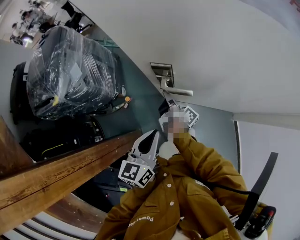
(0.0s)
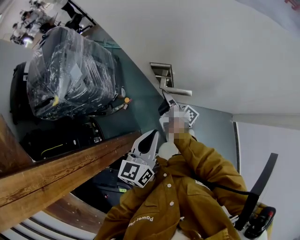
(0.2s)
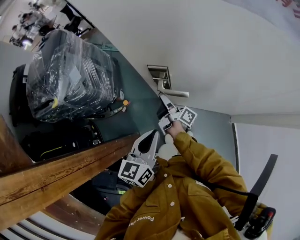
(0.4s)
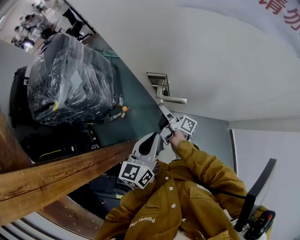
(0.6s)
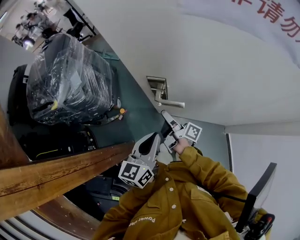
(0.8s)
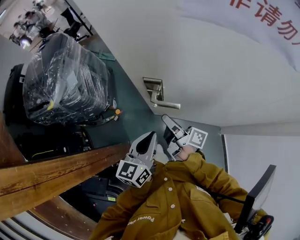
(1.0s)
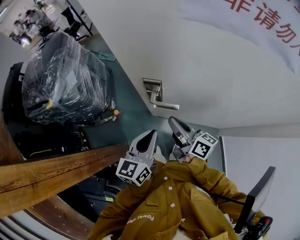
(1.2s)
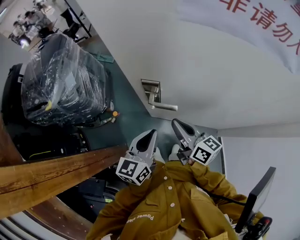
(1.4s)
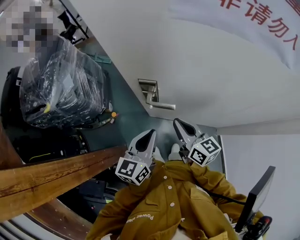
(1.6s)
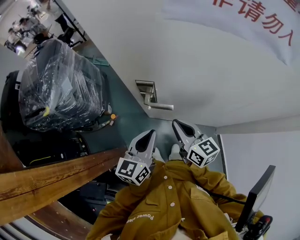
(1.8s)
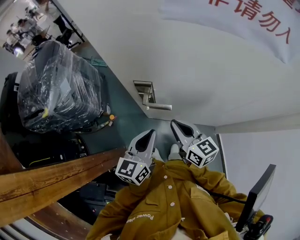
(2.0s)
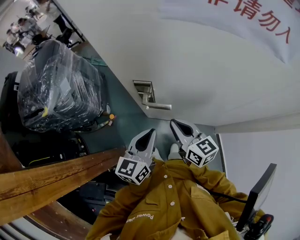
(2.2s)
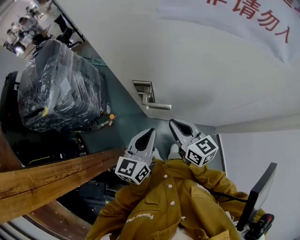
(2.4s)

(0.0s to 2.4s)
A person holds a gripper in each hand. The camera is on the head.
0.0s - 1.2s: The left gripper shifts by about 5 cm.

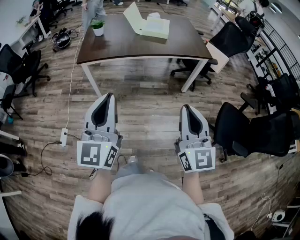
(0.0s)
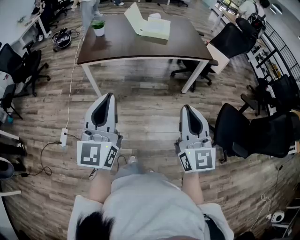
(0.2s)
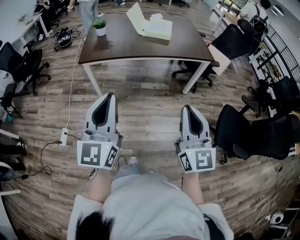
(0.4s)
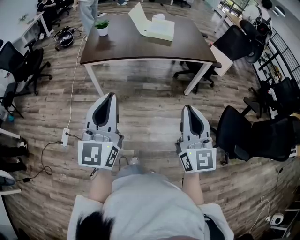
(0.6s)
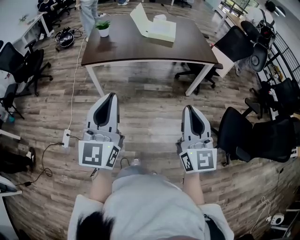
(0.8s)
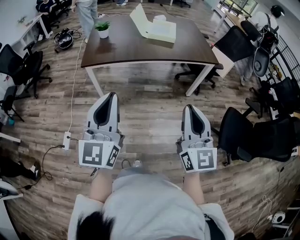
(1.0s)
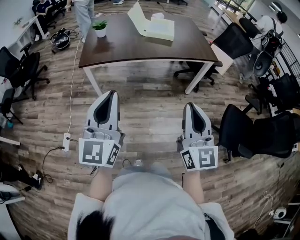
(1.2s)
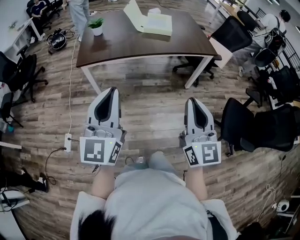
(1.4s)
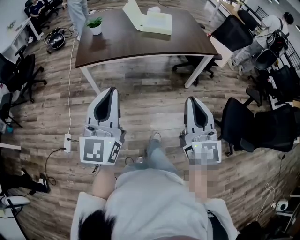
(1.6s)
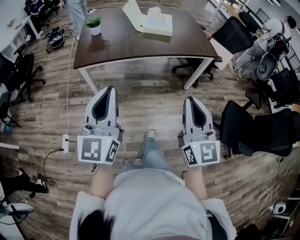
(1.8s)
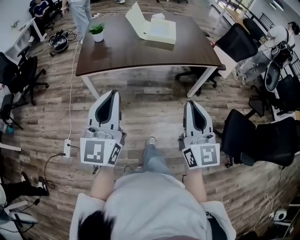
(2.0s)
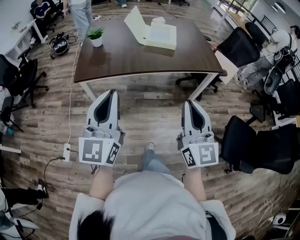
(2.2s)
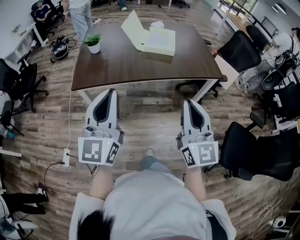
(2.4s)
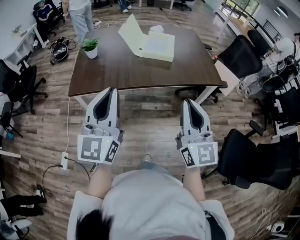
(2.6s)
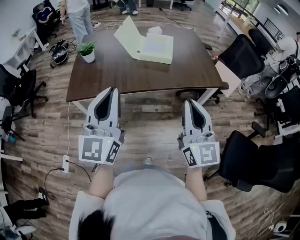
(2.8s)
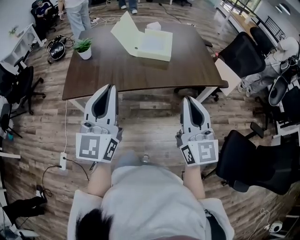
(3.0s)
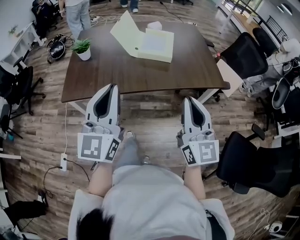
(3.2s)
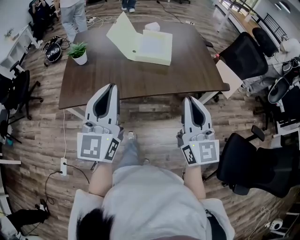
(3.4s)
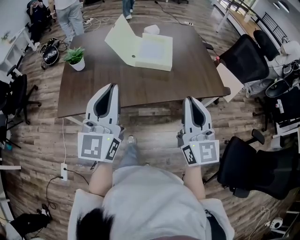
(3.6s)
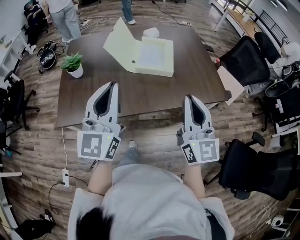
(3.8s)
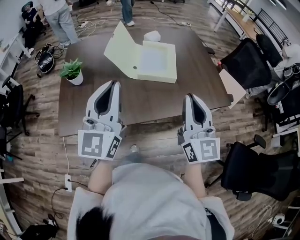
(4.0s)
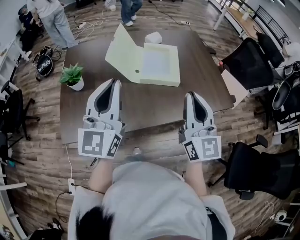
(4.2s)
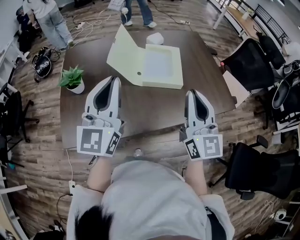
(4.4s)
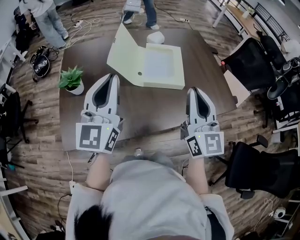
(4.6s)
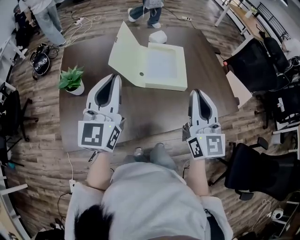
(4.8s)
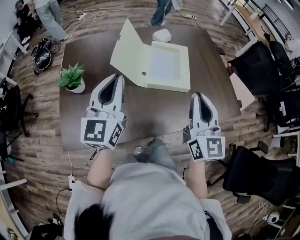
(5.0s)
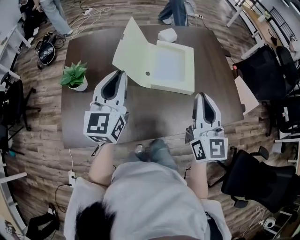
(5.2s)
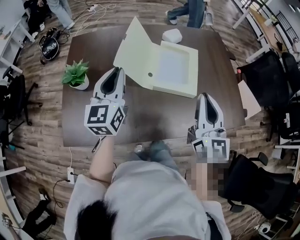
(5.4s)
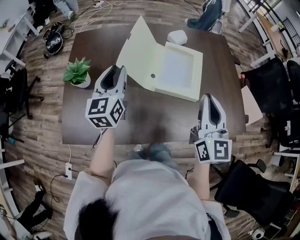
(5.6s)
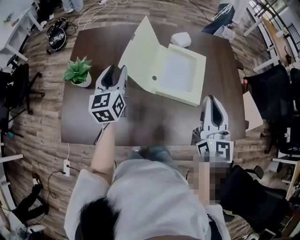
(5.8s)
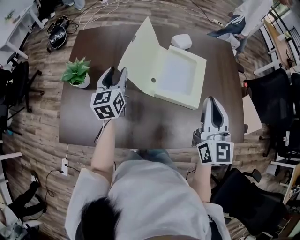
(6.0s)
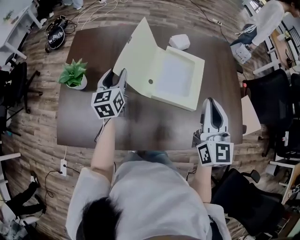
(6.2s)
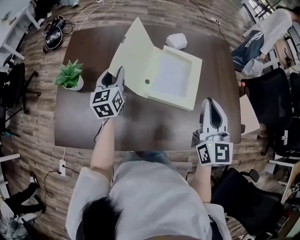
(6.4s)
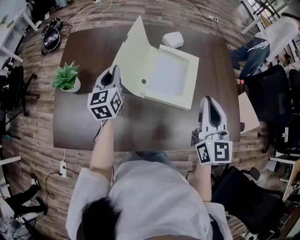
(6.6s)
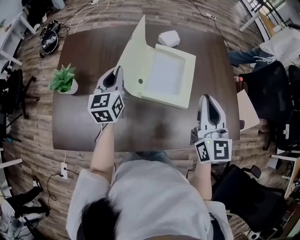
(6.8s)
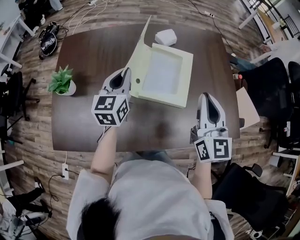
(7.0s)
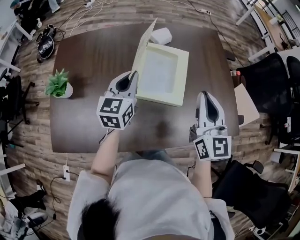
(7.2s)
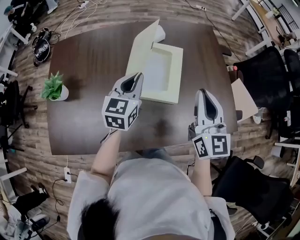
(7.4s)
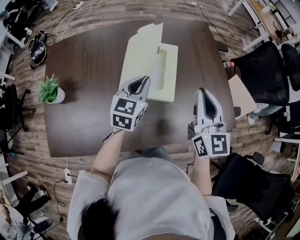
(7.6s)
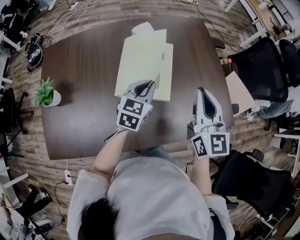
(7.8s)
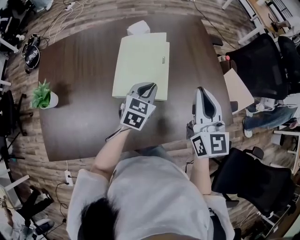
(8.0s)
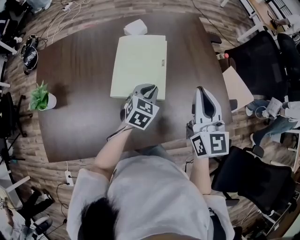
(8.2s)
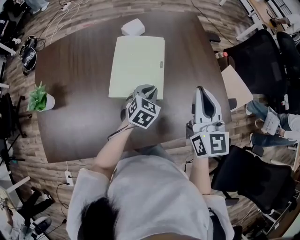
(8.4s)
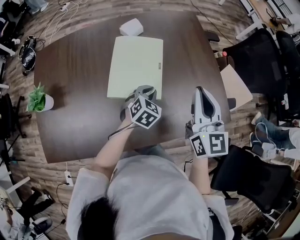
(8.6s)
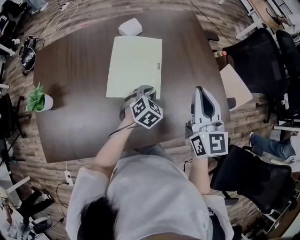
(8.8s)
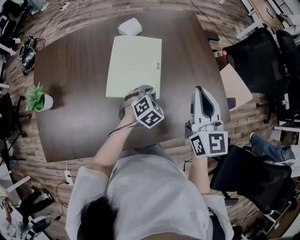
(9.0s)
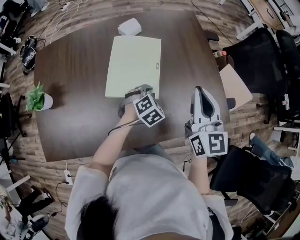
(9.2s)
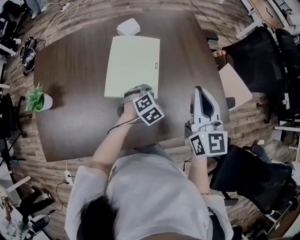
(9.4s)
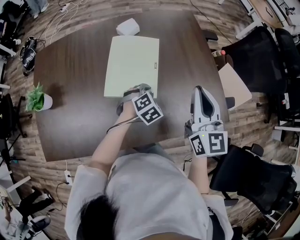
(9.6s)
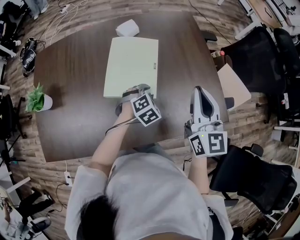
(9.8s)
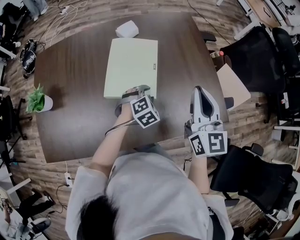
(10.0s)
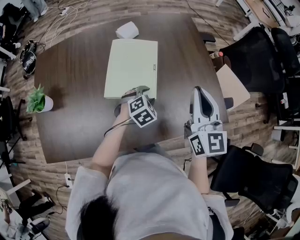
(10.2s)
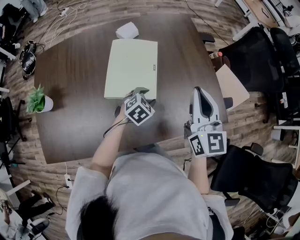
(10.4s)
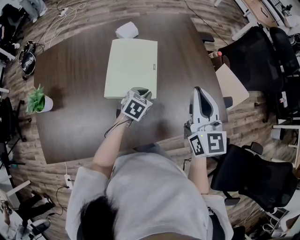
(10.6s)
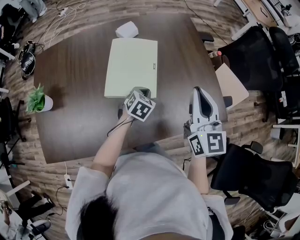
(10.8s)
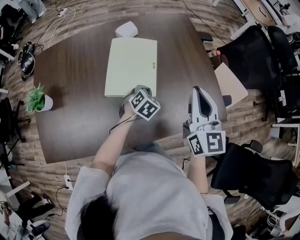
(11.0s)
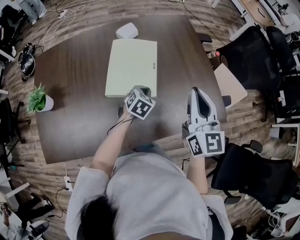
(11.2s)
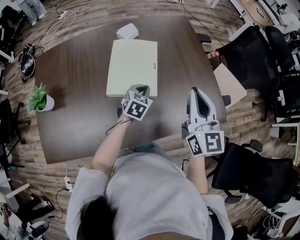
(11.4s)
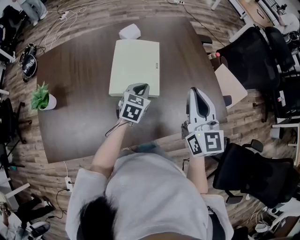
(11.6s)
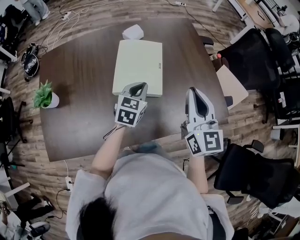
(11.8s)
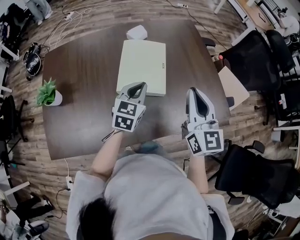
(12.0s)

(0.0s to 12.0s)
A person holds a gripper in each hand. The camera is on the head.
0.0s - 1.6s: Both grippers move forward and to the left, approximately 10 cm.
1.6s - 3.0s: The two grippers go roughly 30 cm forward.
3.0s - 4.4s: The grippers both shift forward by approximately 30 cm.
4.4s - 6.0s: The left gripper shifts approximately 30 cm forward and downward, turns by about 40 degrees, and opens. Meanwhile the right gripper heads forward, covering about 20 cm.
6.0s - 7.6s: The right gripper heads to the right, covering approximately 10 cm. Meanwhile the left gripper moves to the right, some 25 cm, turns by some 30 degrees, and closes up.
7.6s - 9.0s: The right gripper travels to the right by roughly 5 cm; the left gripper heads downward and to the right, covering approximately 20 cm, and tips its fingers downward by approximately 30 degrees.
9.0s - 10.4s: The left gripper opens up.
10.4s - 12.0s: The right gripper heads backward and to the left, covering about 10 cm. The left gripper travels upward and to the left by roughly 15 cm, rotates approximately 40 degrees, and closes.

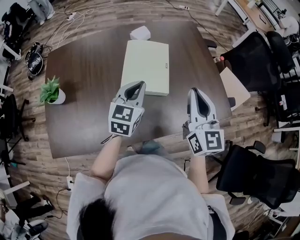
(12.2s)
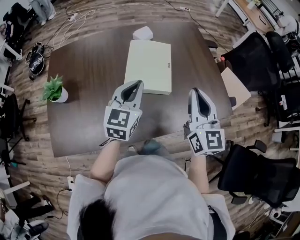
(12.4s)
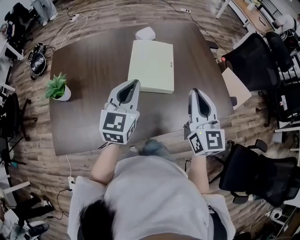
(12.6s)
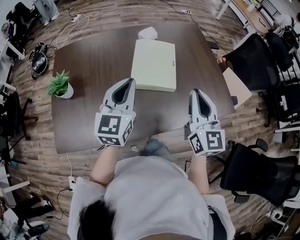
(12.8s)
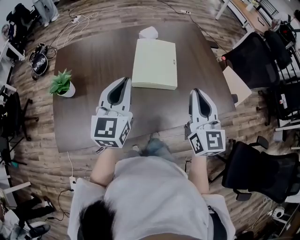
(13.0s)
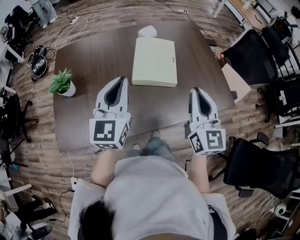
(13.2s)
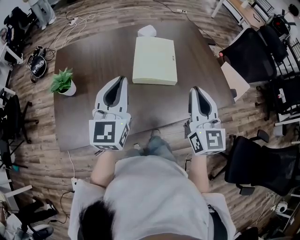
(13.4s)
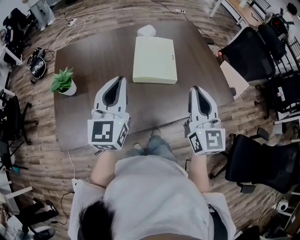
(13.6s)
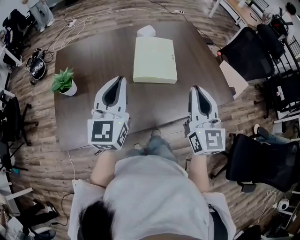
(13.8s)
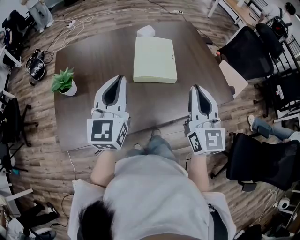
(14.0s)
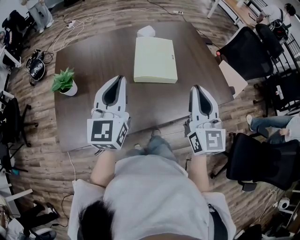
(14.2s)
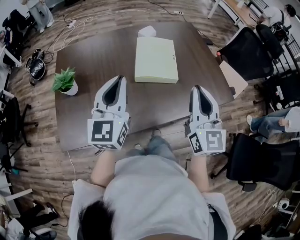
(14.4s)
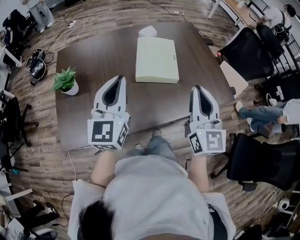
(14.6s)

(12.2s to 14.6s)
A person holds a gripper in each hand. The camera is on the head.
12.2s - 13.4s: The right gripper moves backward and to the left, about 10 cm, while the left gripper shifts approximately 20 cm backward, upward and to the left, and changes its angle by some 20 degrees.
13.4s - 14.6s: There are only small adjustments of the grippers.

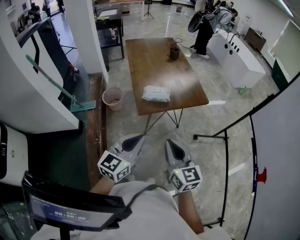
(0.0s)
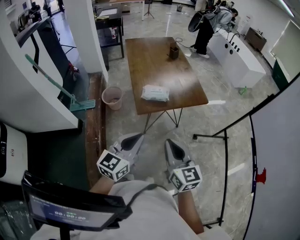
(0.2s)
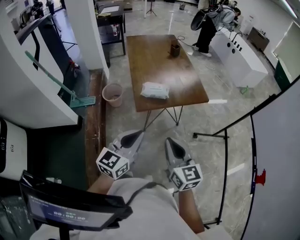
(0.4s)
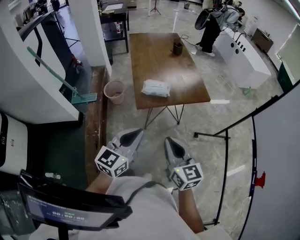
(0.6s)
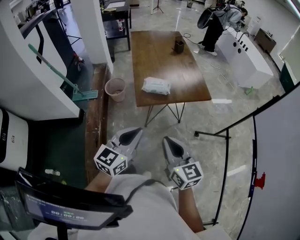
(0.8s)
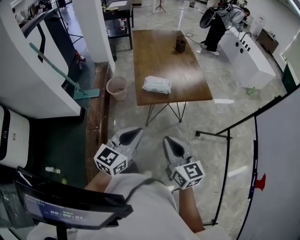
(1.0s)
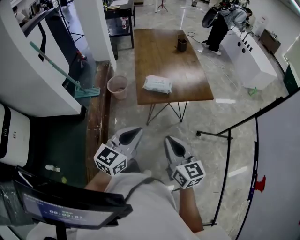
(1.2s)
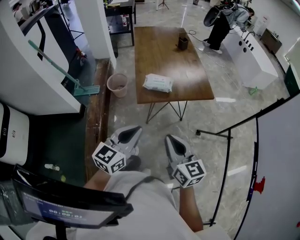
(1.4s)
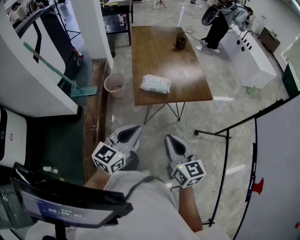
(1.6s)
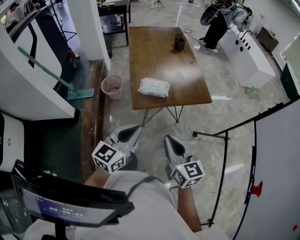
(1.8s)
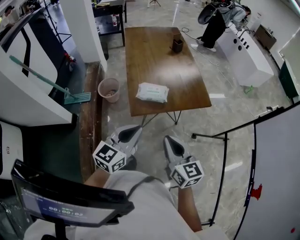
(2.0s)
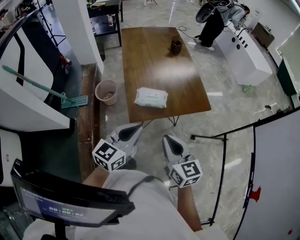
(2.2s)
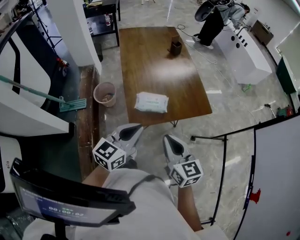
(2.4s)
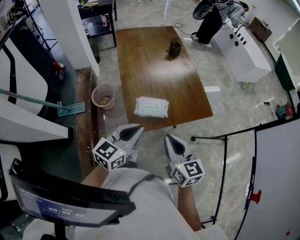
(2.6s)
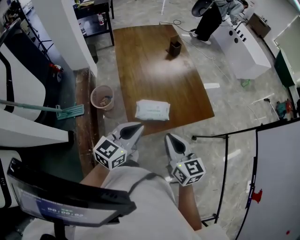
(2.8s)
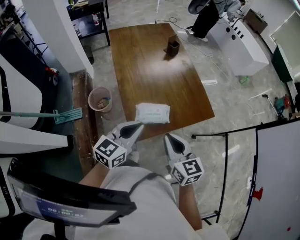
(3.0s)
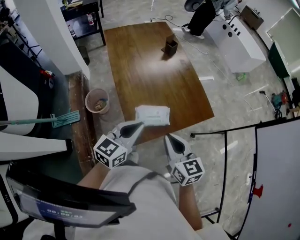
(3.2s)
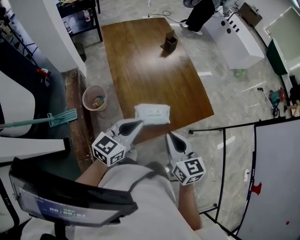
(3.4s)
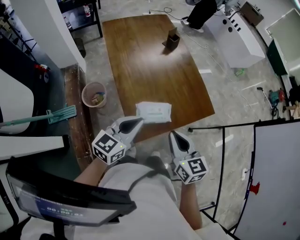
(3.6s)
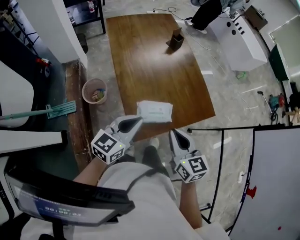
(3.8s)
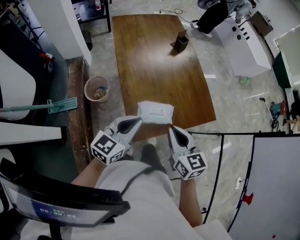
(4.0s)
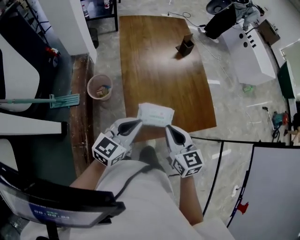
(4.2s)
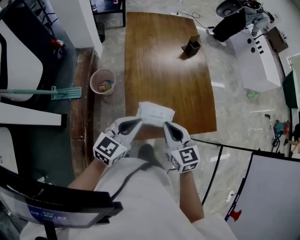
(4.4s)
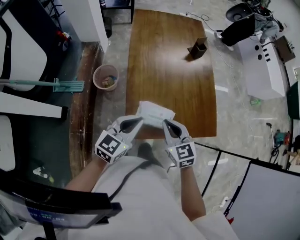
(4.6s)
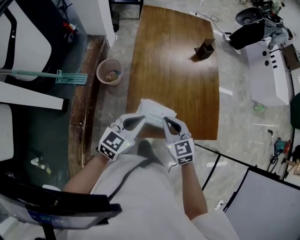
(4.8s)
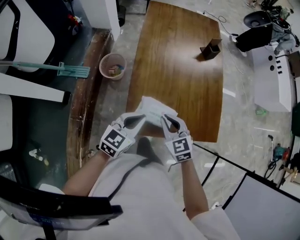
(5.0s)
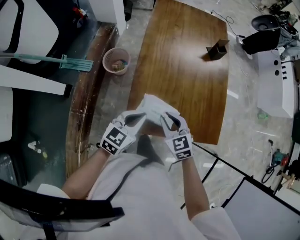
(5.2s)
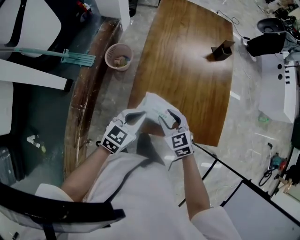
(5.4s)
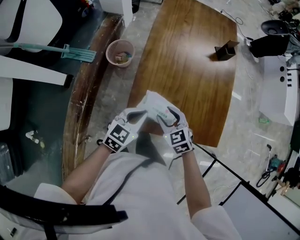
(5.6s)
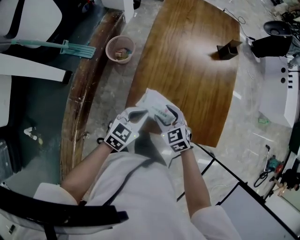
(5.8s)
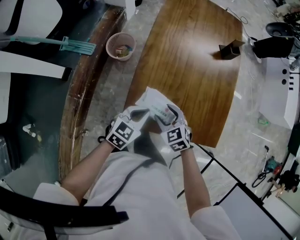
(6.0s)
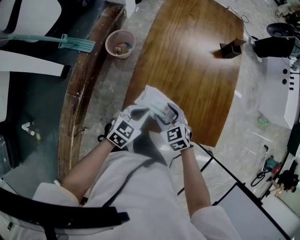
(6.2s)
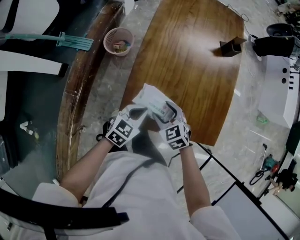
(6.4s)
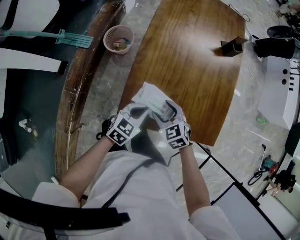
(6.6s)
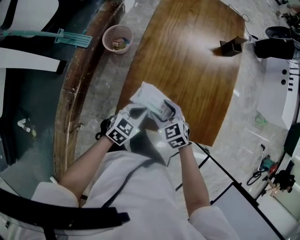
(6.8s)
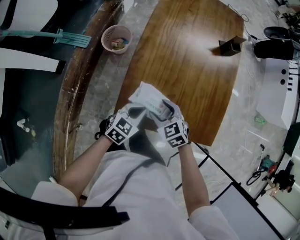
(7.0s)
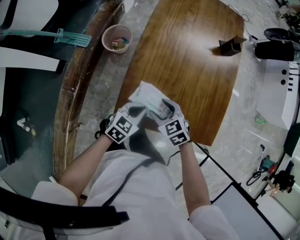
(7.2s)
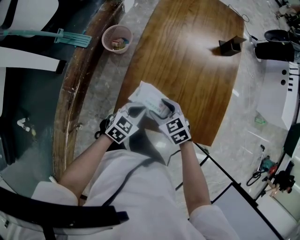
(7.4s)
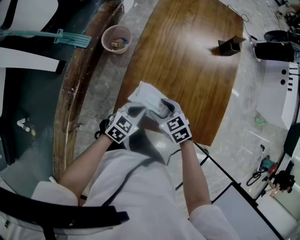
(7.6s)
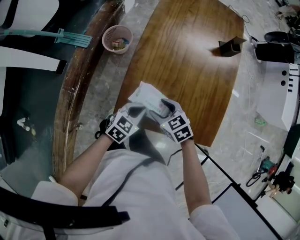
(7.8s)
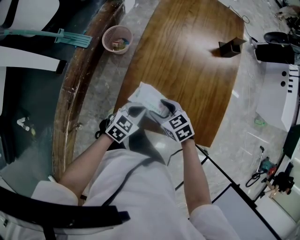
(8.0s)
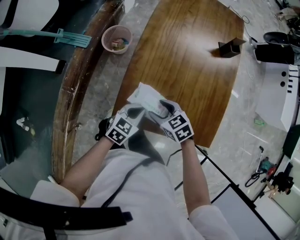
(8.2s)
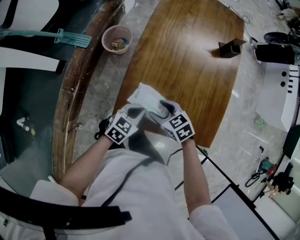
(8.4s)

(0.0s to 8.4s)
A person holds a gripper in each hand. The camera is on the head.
0.0s - 1.4s: The right gripper ends up roughly 5 cm from where it was.
1.4s - 2.8s: Both grippers move forward, approximately 25 cm.
2.8s - 4.2s: Both grippers travel together forward and to the left, roughly 10 cm.
4.2s - 5.6s: The right gripper moves downward and forward, some 20 cm, changes its angle by approximately 40 degrees, and opens its fingers, while the left gripper is displaced downward by roughly 15 cm, and swivels roughly 20 degrees.
5.6s - 7.0s: The left gripper heads downward, covering approximately 10 cm.
7.0s - 8.4s: The grippers make only small movements.
